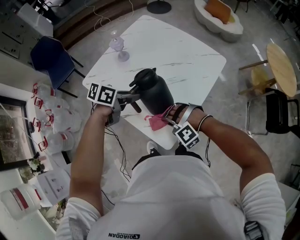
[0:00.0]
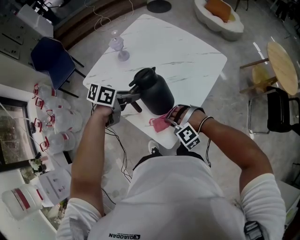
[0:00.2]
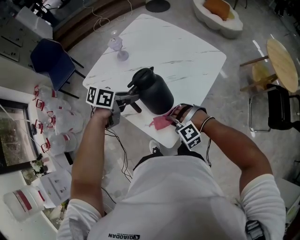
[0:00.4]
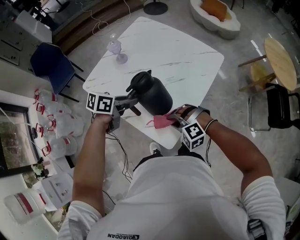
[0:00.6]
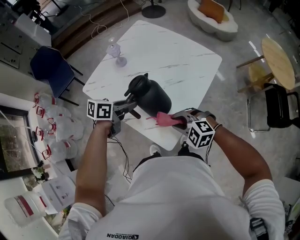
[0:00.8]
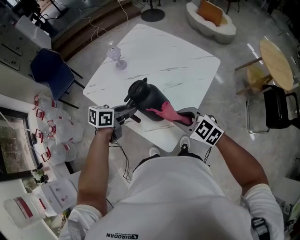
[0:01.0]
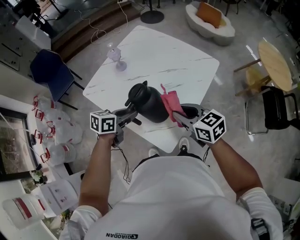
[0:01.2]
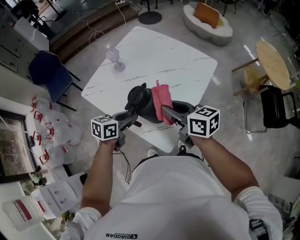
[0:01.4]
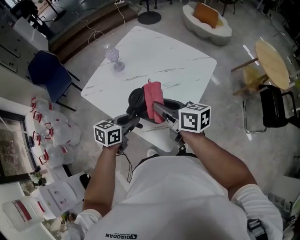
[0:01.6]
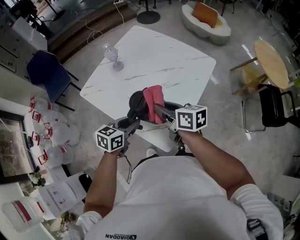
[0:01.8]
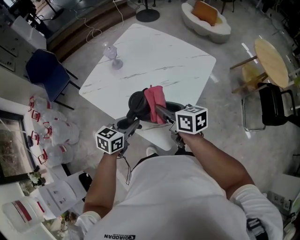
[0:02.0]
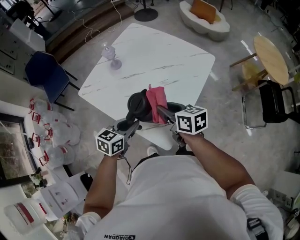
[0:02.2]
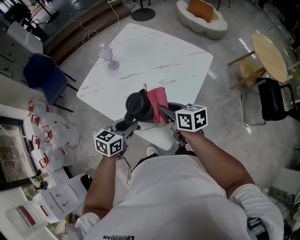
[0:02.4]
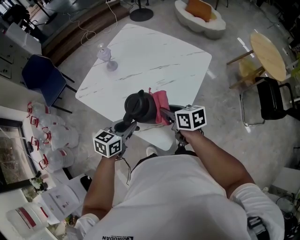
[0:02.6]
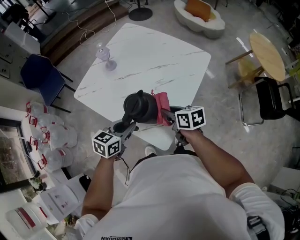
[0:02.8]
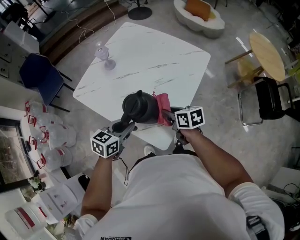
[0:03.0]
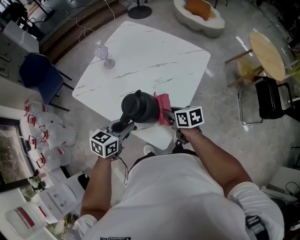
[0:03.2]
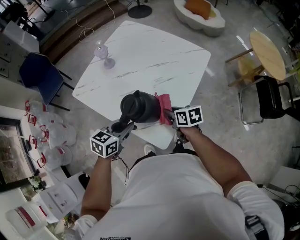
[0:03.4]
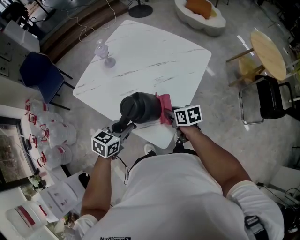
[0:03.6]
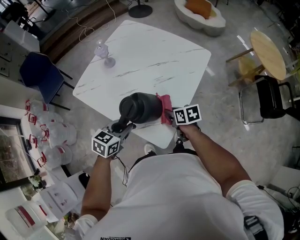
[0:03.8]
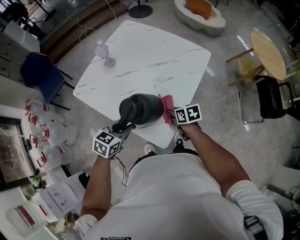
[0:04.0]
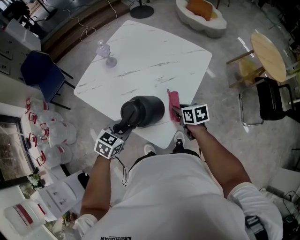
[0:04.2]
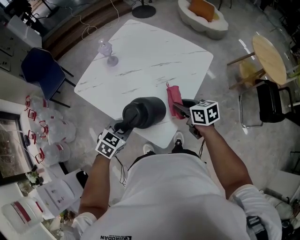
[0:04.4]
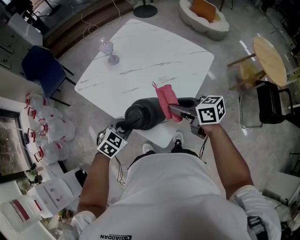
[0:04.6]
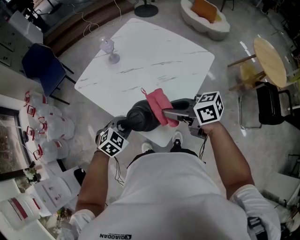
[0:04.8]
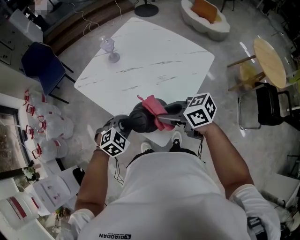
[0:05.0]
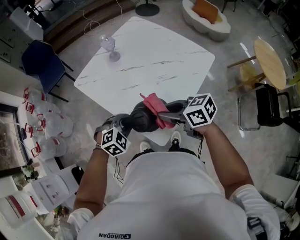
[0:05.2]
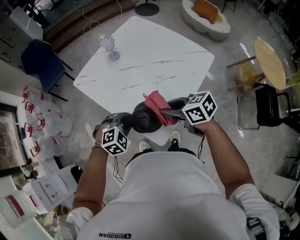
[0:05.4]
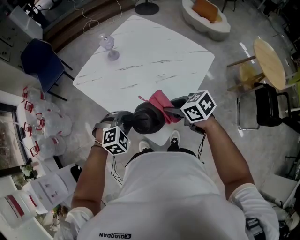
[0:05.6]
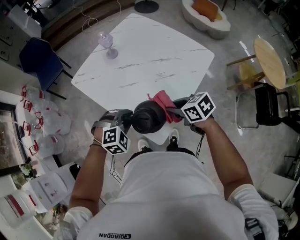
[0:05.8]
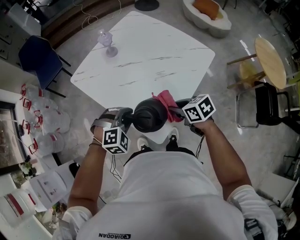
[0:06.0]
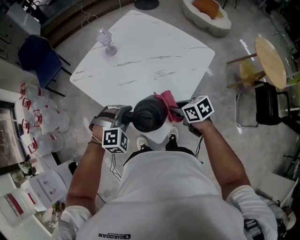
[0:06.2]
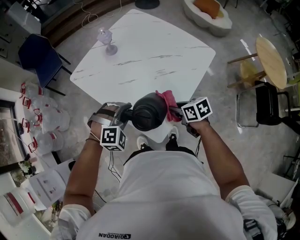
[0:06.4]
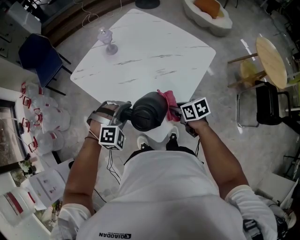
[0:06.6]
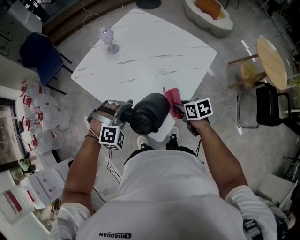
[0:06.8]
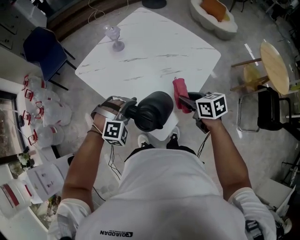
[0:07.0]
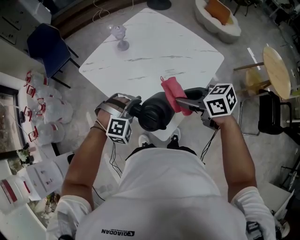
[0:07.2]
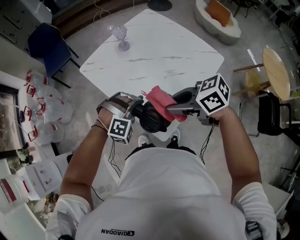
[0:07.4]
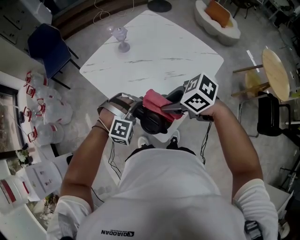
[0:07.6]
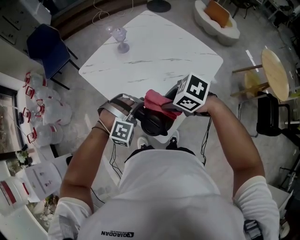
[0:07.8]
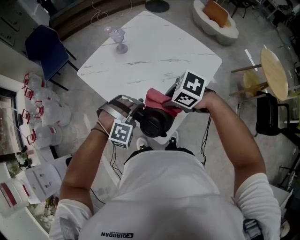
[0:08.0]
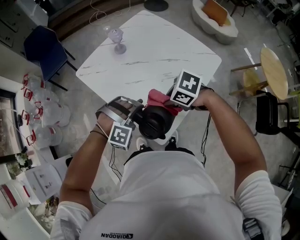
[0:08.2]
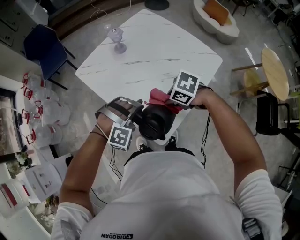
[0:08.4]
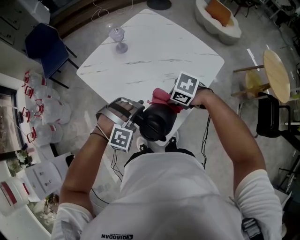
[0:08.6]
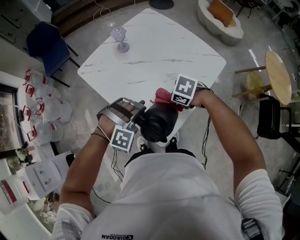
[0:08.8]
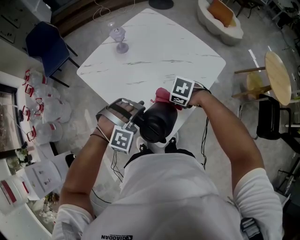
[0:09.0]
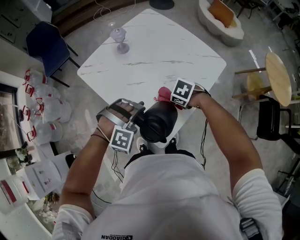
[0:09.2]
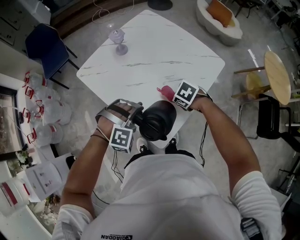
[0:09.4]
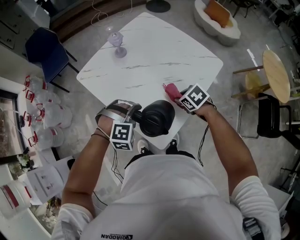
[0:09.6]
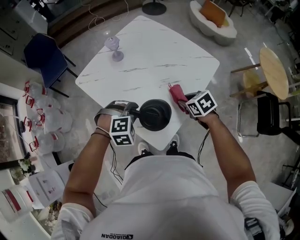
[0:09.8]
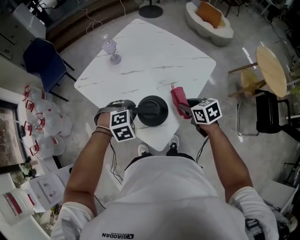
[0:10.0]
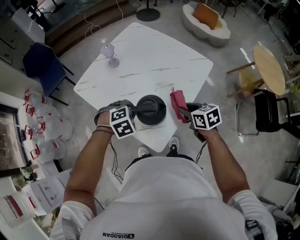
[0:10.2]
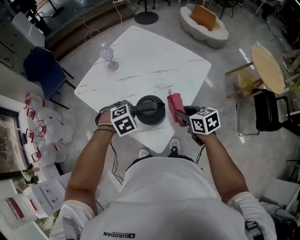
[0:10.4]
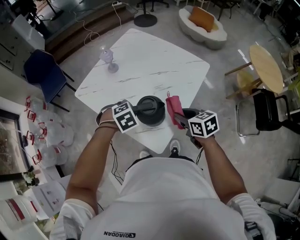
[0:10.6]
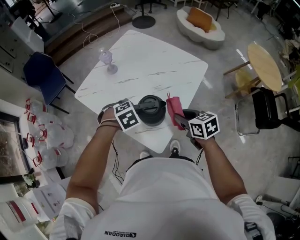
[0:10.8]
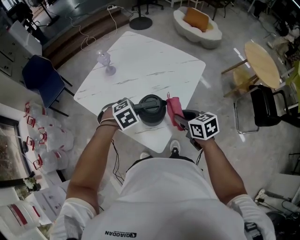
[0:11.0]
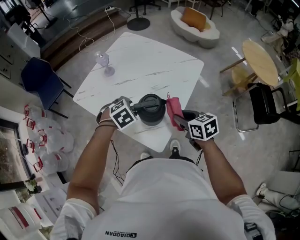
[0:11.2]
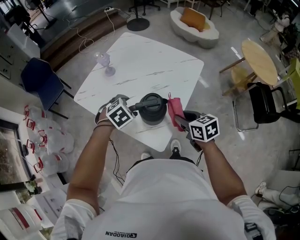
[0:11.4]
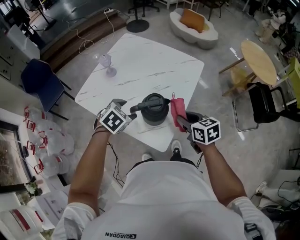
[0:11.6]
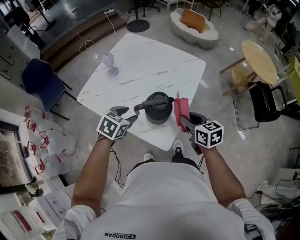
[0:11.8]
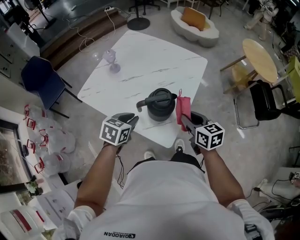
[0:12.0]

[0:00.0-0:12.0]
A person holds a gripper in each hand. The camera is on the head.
0:00.0 to 0:01.6: The right gripper is displaced upward by roughly 20 cm, and rolls clockwise, seen from behind, by approximately 120 degrees. Meanwhile the left gripper shifts by about 5 cm, and rotates some 20 degrees.
0:01.6 to 0:03.0: The right gripper shifts approximately 15 cm downward and to the right, and turns by roughly 20 degrees.
0:03.0 to 0:04.4: The right gripper travels downward and back again, approximately 5 cm each way; the left gripper swivels about 20 degrees.
0:04.4 to 0:06.0: The left gripper twists approximately 40 degrees clockwise, seen from behind, while the right gripper travels upward and back again, some 10 cm each way, and turns by approximately 20 degrees.
0:06.0 to 0:07.6: The right gripper goes approximately 10 cm upward, and turns by about 30 degrees, while the left gripper changes its angle by about 20 degrees.
0:07.6 to 0:09.0: The right gripper heads downward, covering approximately 15 cm, and points its fingers about 30 degrees further downward.
0:09.0 to 0:10.4: The left gripper moves some 5 cm, and rolls counterclockwise, seen from behind, by about 40 degrees; the right gripper moves some 10 cm, and angles its fingers upward, by about 30 degrees.
0:10.4 to 0:12.0: The right gripper shifts by approximately 10 cm, and changes its angle by approximately 20 degrees, while the left gripper ends up about 5 cm from where it was, rotates approximately 50 degrees, and opens and closes again.

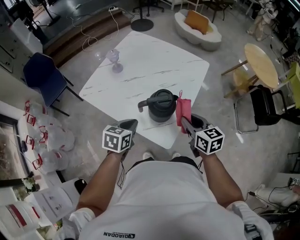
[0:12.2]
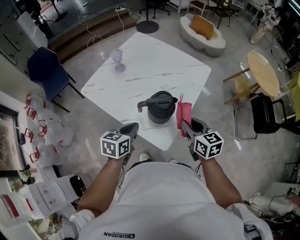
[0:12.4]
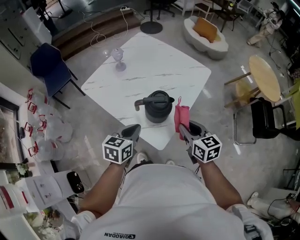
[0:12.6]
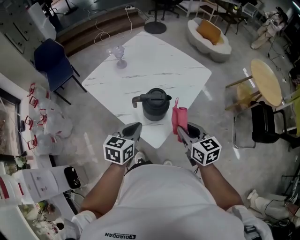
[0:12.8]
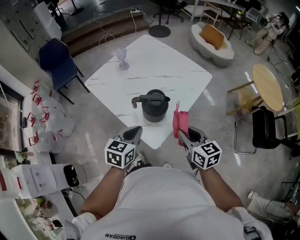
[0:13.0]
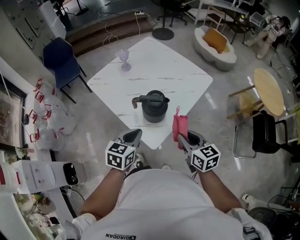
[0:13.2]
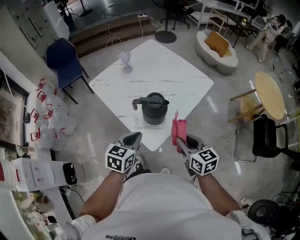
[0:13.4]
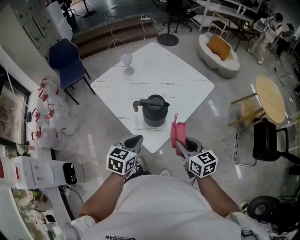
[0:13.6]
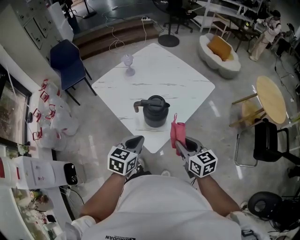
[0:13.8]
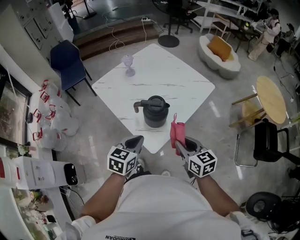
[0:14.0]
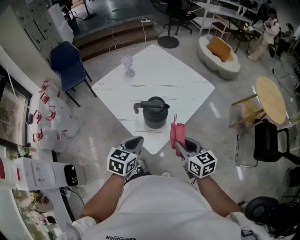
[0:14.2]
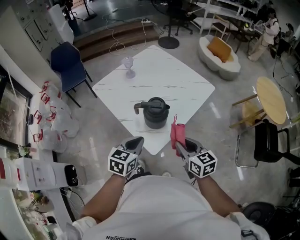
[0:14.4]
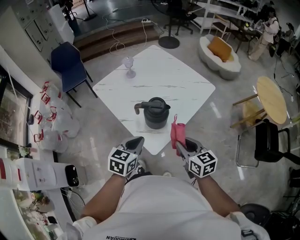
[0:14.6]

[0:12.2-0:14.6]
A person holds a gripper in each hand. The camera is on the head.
0:12.2 to 0:13.4: The left gripper shifts roughly 10 cm backward and to the right; the right gripper is displaced backward by approximately 5 cm.
0:13.4 to 0:14.6: Neither gripper changes place.

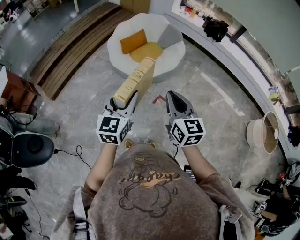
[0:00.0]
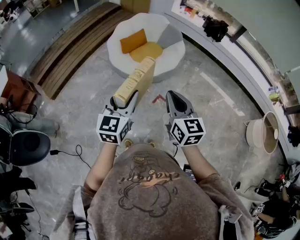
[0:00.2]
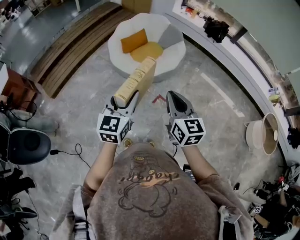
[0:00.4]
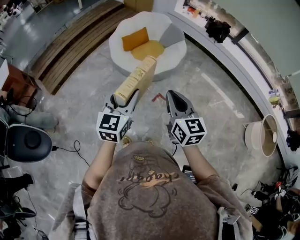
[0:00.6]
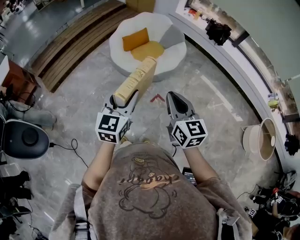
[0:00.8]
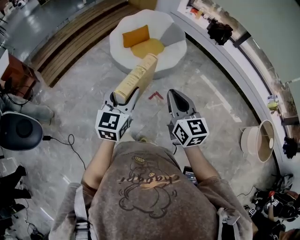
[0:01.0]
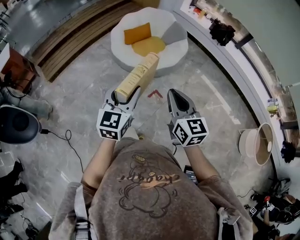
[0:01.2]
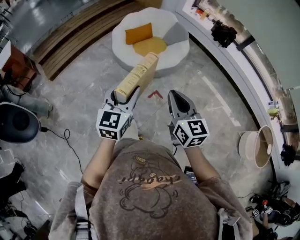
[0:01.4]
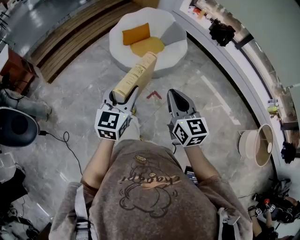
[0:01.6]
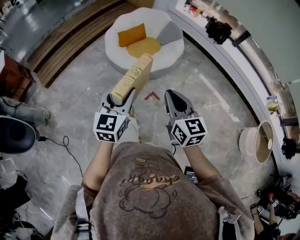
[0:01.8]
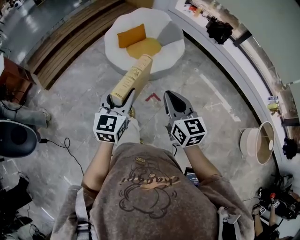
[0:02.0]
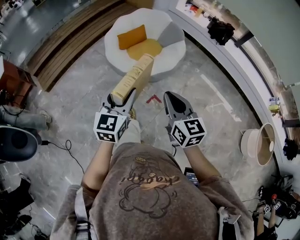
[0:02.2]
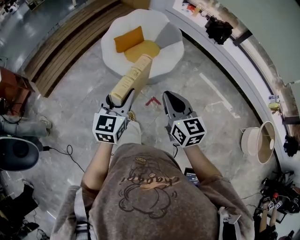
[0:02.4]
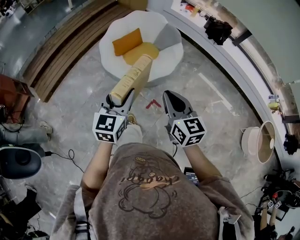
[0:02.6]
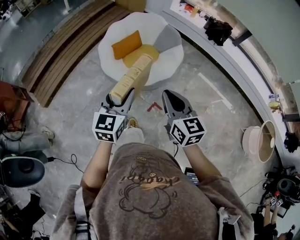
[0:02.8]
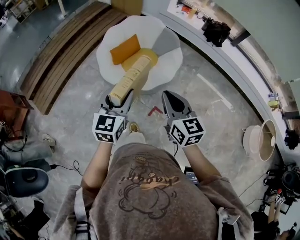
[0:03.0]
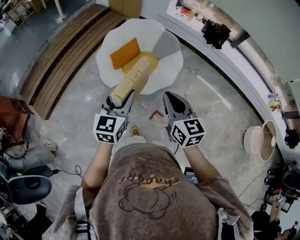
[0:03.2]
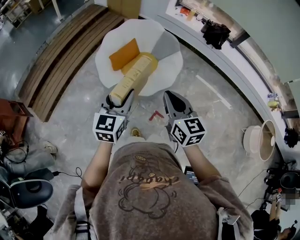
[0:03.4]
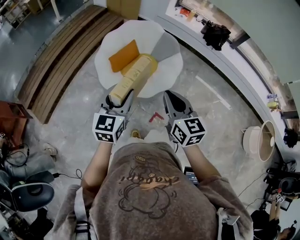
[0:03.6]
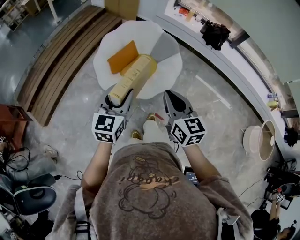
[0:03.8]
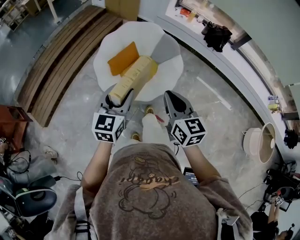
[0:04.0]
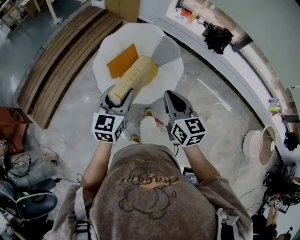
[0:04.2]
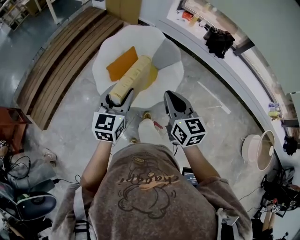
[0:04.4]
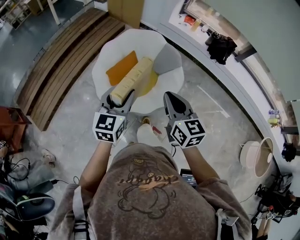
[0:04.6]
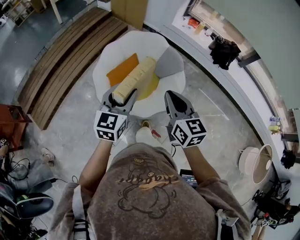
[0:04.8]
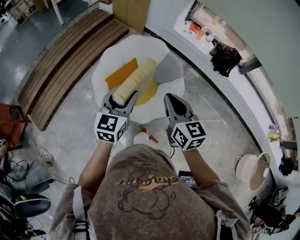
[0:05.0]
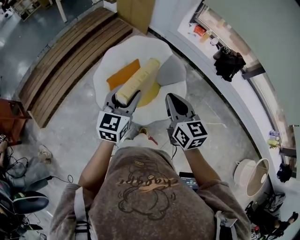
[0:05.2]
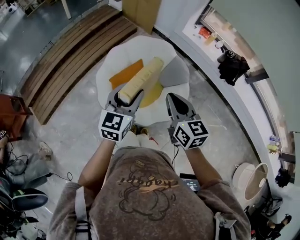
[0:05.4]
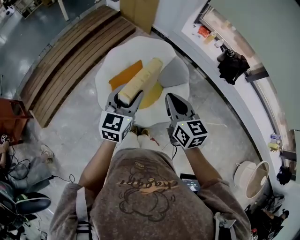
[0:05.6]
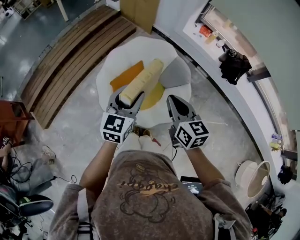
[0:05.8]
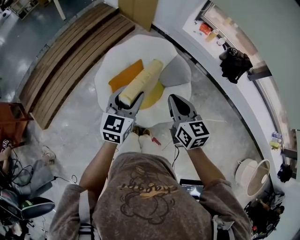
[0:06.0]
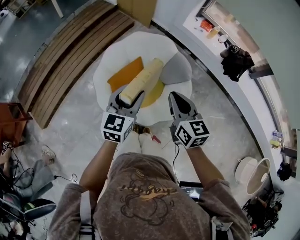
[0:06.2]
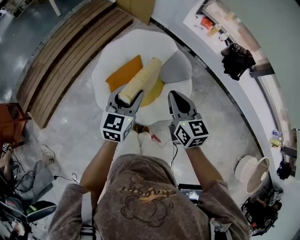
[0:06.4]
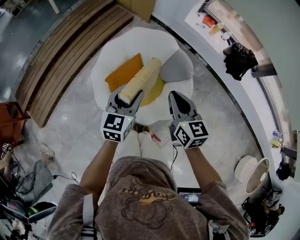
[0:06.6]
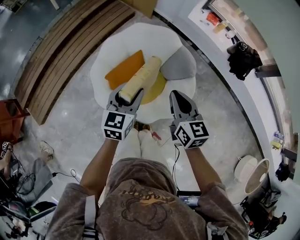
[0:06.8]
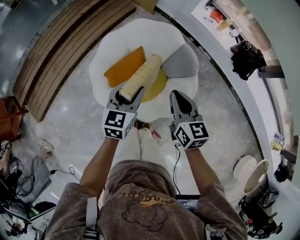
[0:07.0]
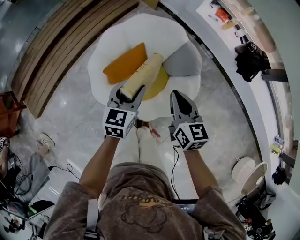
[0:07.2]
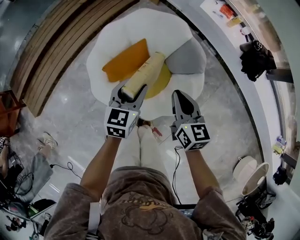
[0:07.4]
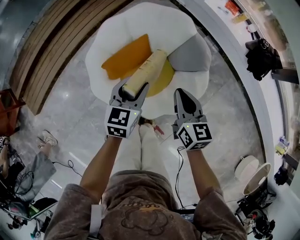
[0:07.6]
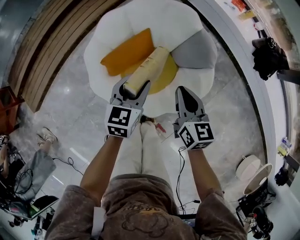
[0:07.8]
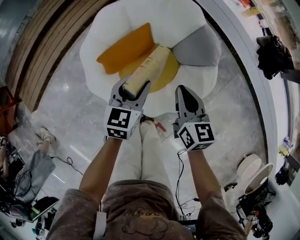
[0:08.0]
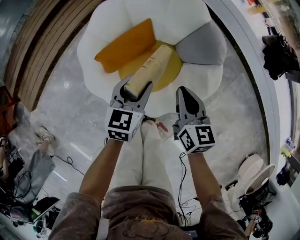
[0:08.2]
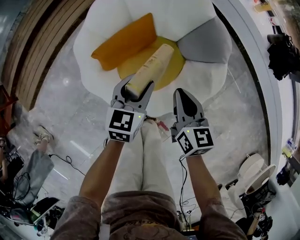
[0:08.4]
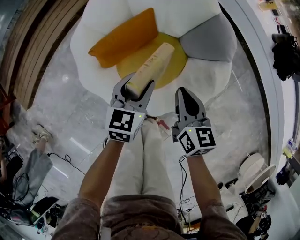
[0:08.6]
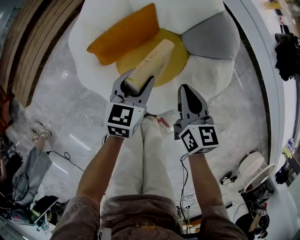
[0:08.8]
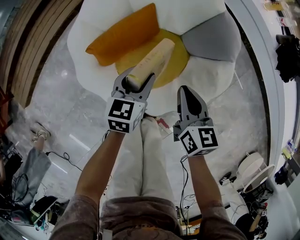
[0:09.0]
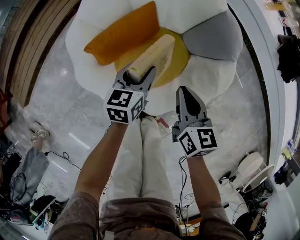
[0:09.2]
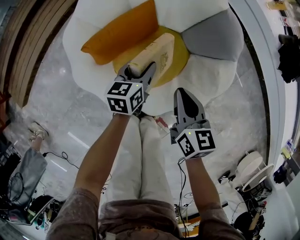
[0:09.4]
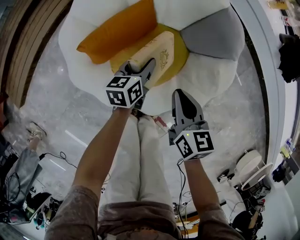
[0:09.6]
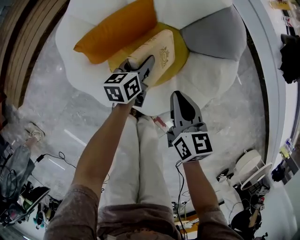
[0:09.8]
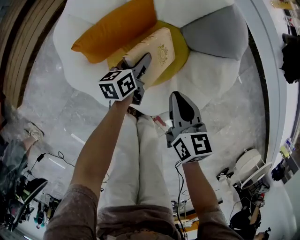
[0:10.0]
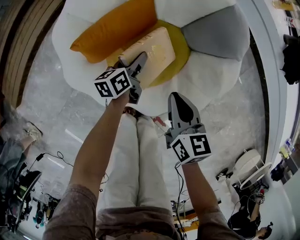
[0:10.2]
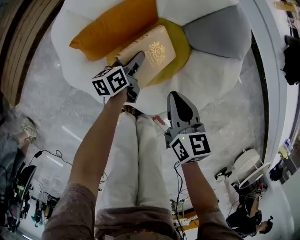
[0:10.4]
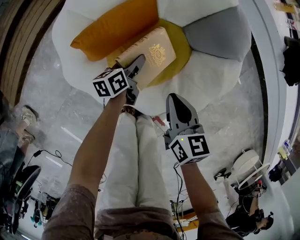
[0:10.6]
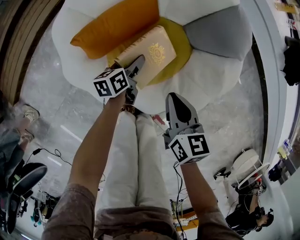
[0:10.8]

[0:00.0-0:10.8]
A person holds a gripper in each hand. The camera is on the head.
0:00.0 to 0:01.6: Both grippers move to the right, roughly 5 cm.
0:01.6 to 0:03.0: Both grippers travel together forward, about 25 cm.
0:03.0 to 0:04.6: The grippers both shift forward by about 25 cm.
0:04.6 to 0:06.2: The grippers both shift forward by approximately 20 cm.
0:06.2 to 0:07.8: Both grippers move downward, approximately 25 cm.
0:07.8 to 0:09.2: The two grippers go some 20 cm downward.
0:09.2 to 0:10.8: The right gripper moves downward, approximately 5 cm. Meanwhile the left gripper travels downward by some 15 cm, and rotates about 30 degrees.
